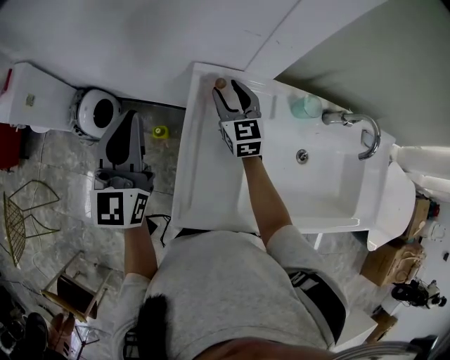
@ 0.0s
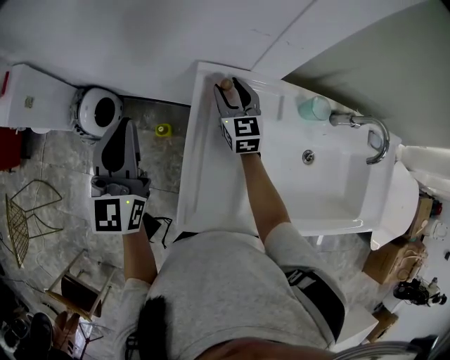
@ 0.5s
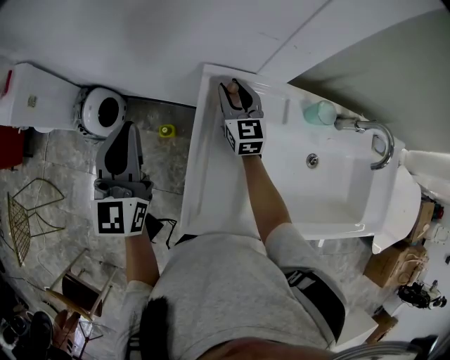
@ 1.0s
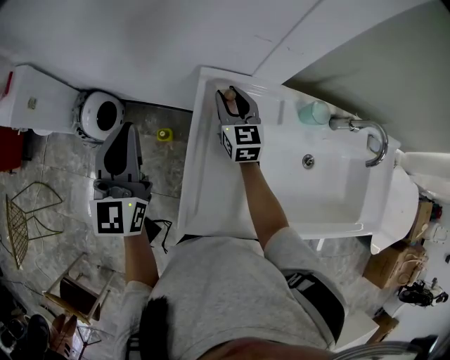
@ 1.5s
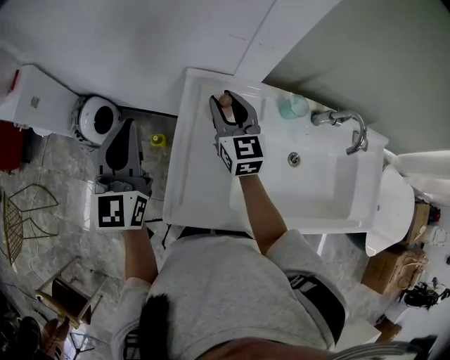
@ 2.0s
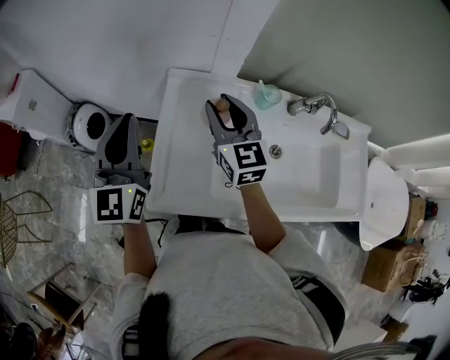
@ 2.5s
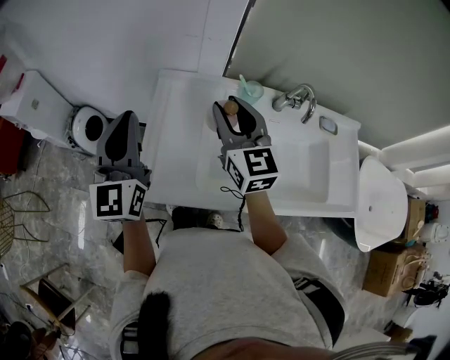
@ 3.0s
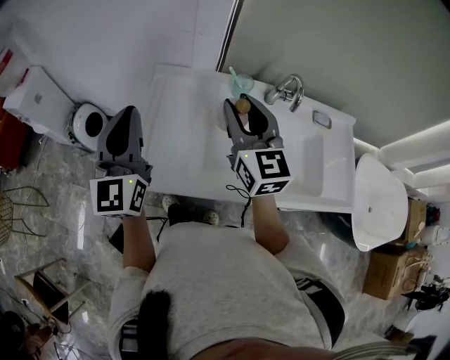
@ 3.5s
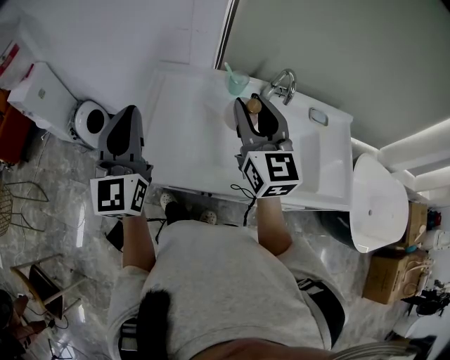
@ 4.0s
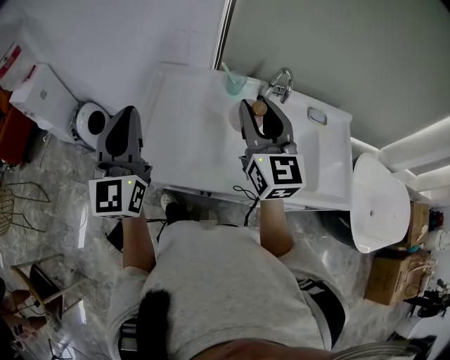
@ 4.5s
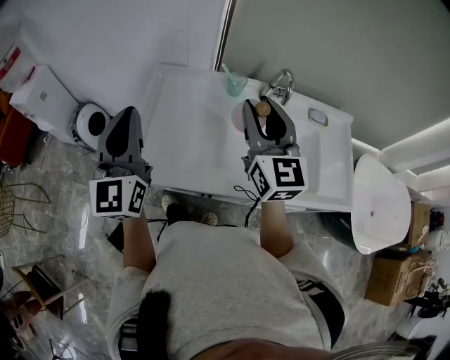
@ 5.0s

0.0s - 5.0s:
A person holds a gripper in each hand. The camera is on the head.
0.0s - 2.5s: The left gripper travels backward, to the right and upward by about 10 cm. The right gripper goes approximately 20 cm upward and backward.
2.5s - 5.0s: The left gripper is displaced backward and to the right by approximately 20 cm; the right gripper is displaced backward, to the right and upward by about 30 cm.

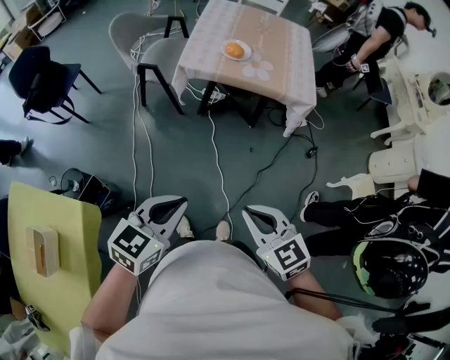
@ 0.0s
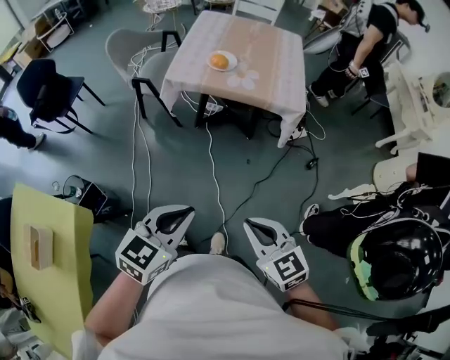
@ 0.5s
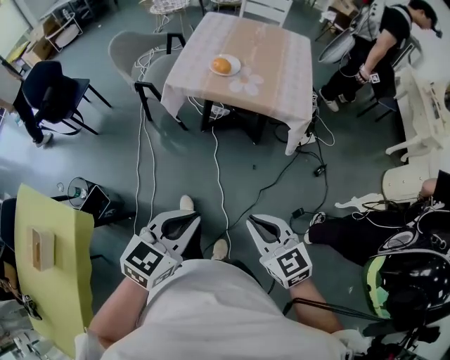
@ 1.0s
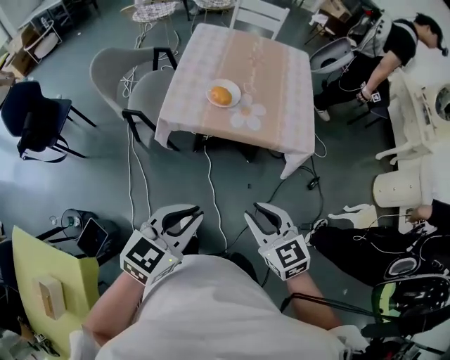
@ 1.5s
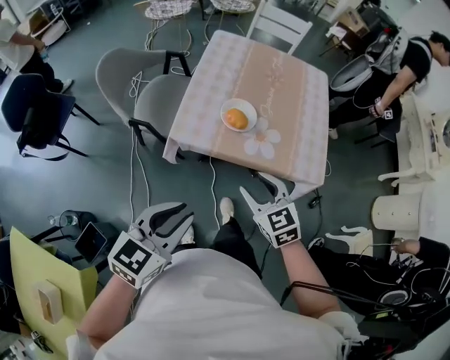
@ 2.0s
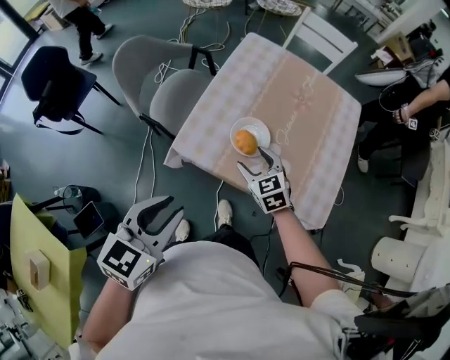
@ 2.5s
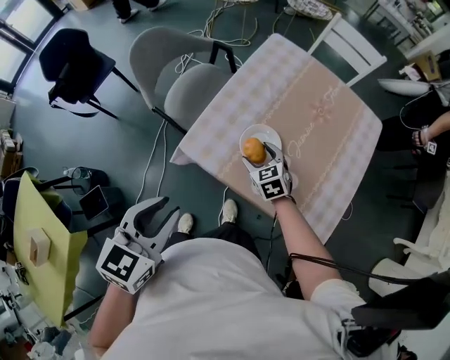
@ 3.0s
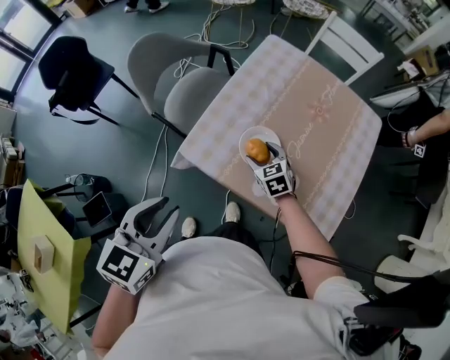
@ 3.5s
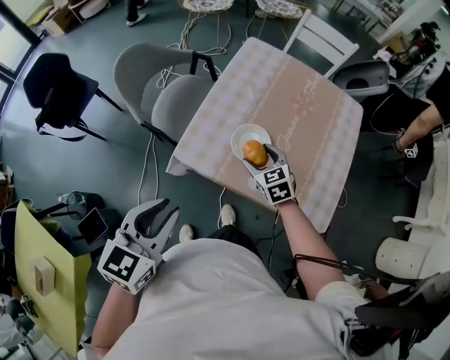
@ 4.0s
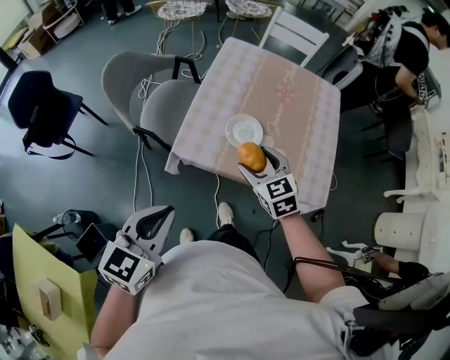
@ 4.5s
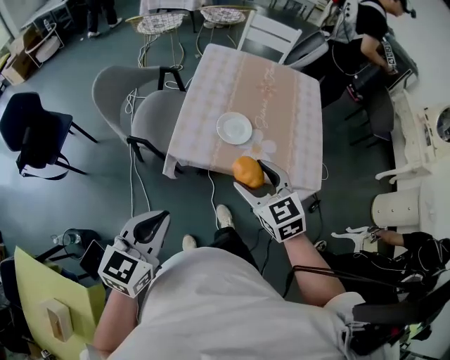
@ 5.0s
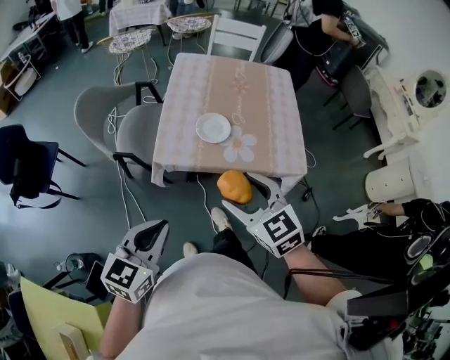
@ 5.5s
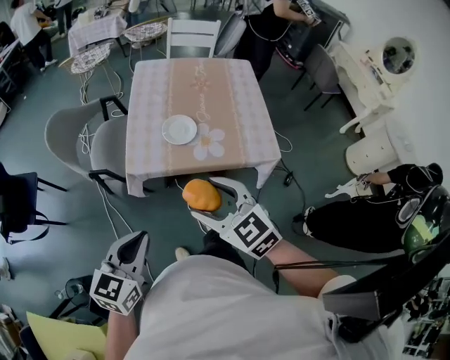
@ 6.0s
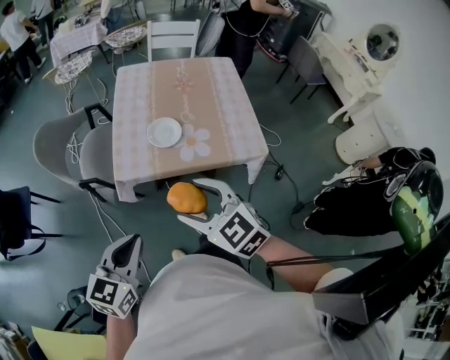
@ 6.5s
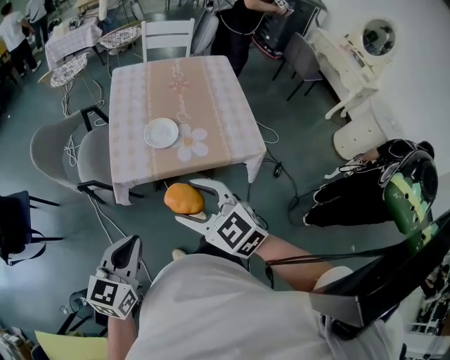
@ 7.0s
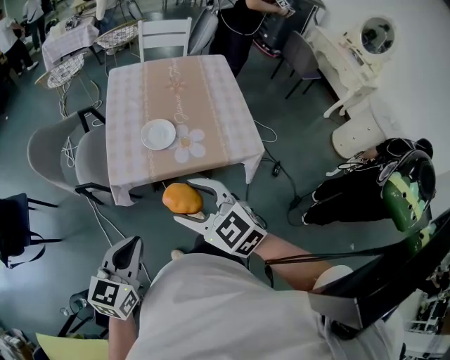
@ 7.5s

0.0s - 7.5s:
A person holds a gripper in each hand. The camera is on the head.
0.0s - 2.0s: Both grippers move forward, roughly 35 cm. The right gripper opens up.
2.0s - 4.0s: The left gripper travels forward by about 15 cm, and turns by roughly 20 degrees, while the right gripper shifts some 25 cm forward and downward, and opens its fingers.
4.0s - 5.5s: The left gripper shifts some 15 cm backward, swivels roughly 20 degrees, and closes its fingers; the right gripper goes roughly 35 cm backward and upward.
5.5s - 7.5s: The grippers move only a little.

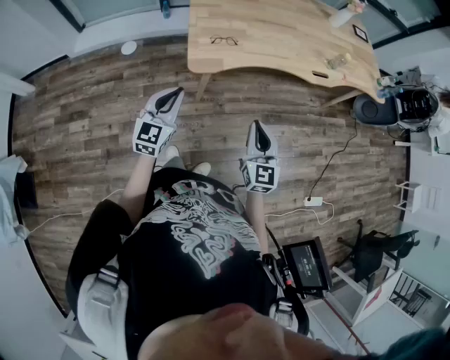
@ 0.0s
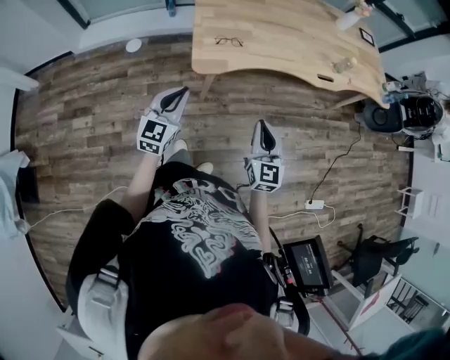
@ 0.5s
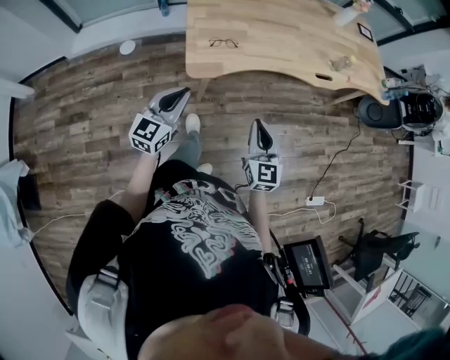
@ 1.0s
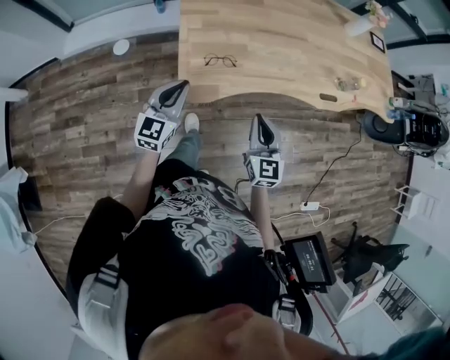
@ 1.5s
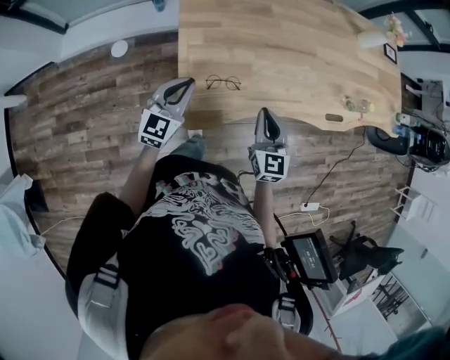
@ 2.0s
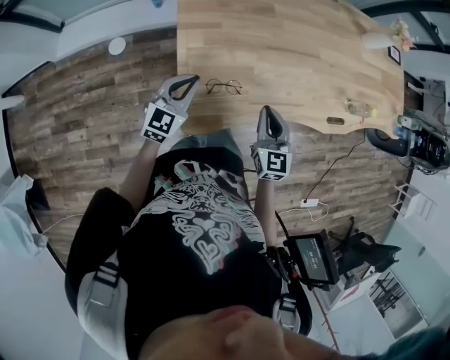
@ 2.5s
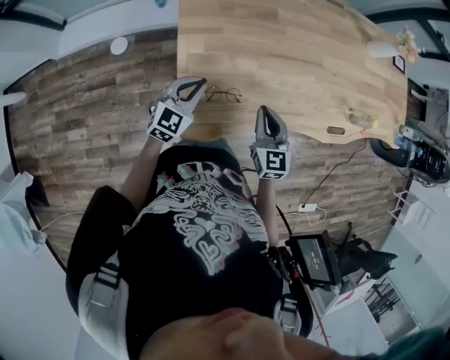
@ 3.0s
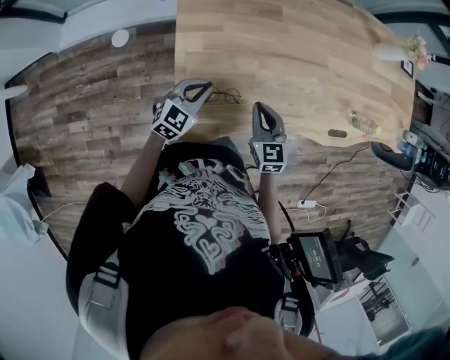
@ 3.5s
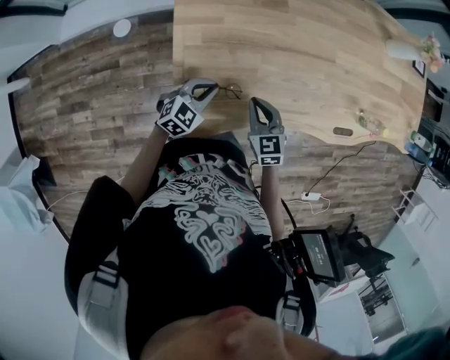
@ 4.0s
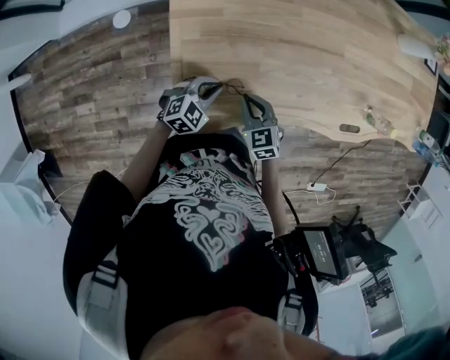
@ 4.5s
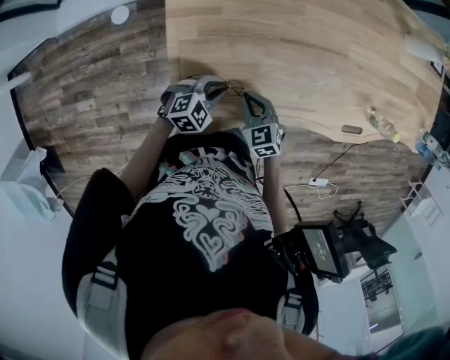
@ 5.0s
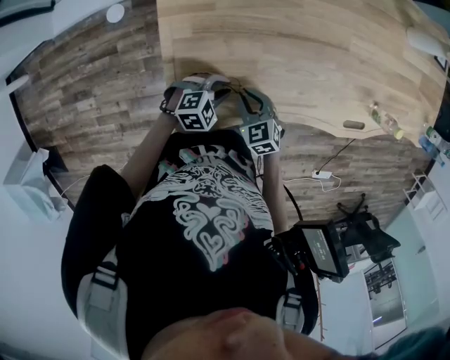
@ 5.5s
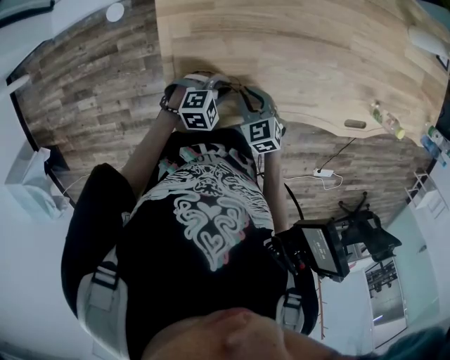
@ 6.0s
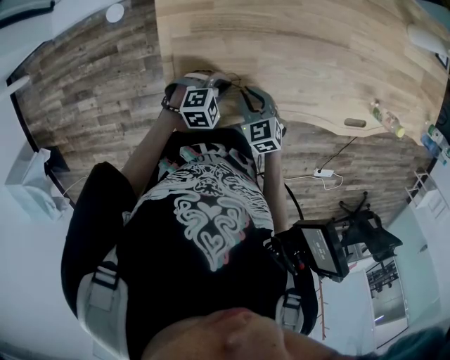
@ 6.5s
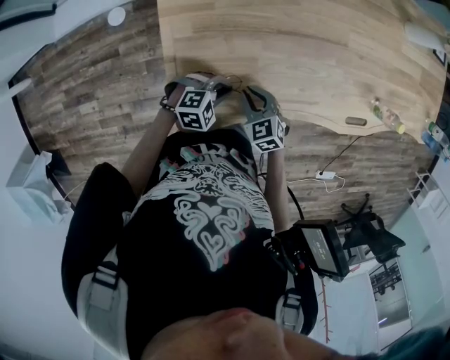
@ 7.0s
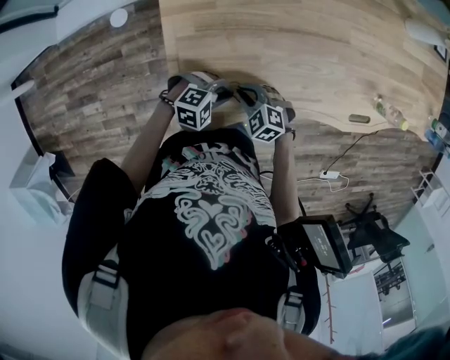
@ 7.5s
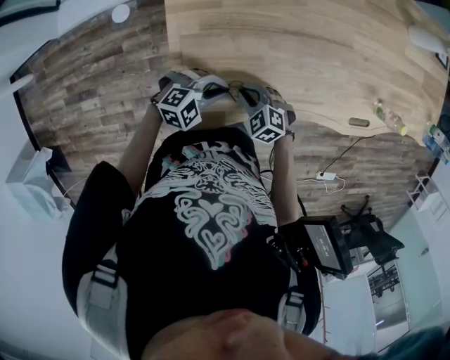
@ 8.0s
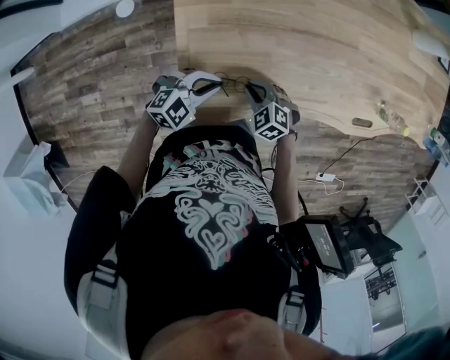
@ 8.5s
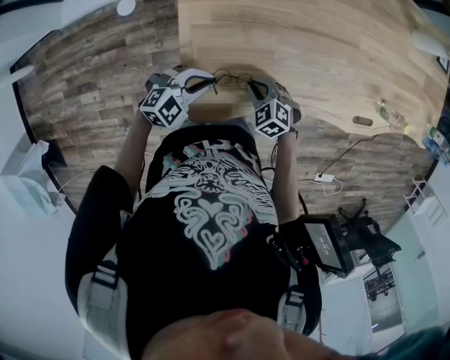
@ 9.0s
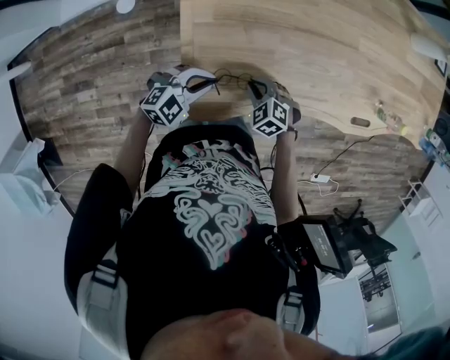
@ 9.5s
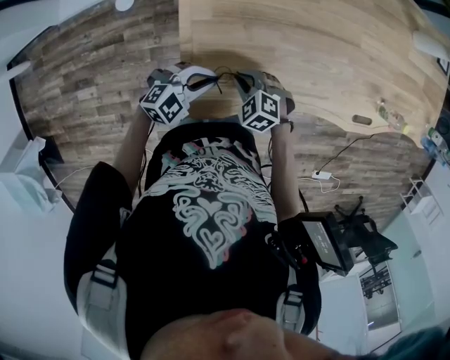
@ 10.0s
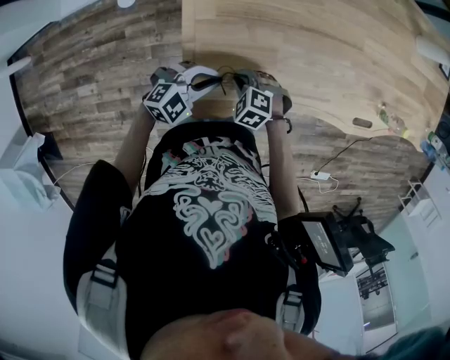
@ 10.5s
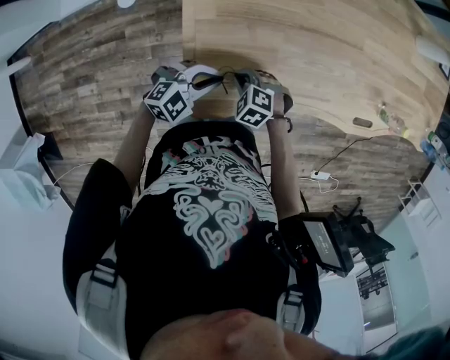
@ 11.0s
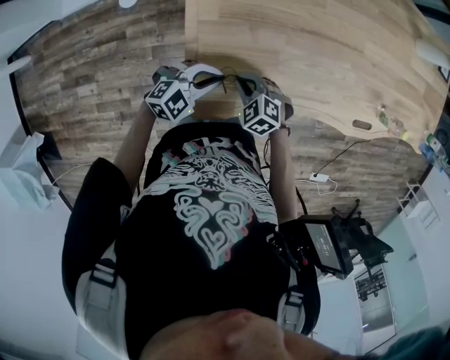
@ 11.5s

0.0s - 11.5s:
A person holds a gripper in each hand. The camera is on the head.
0.0s - 2.0s: Both grippers move forward, approximately 40 cm.
2.0s - 4.0s: The right gripper travels downward and forward by roughly 15 cm, and swivels about 30 degrees, while the left gripper moves downward, forward and to the right, about 20 cm, and rotates roughly 30 degrees.
4.0s - 6.0s: Both grippers move downward, approximately 10 cm. The left gripper turns by roughly 30 degrees.
6.0s - 7.5s: The right gripper swivels roughly 30 degrees.
7.5s - 9.5s: The left gripper ends up approximately 10 cm from where it was, and rotates some 30 degrees.
9.5s - 11.5s: The right gripper ends up approximately 5 cm from where it was.

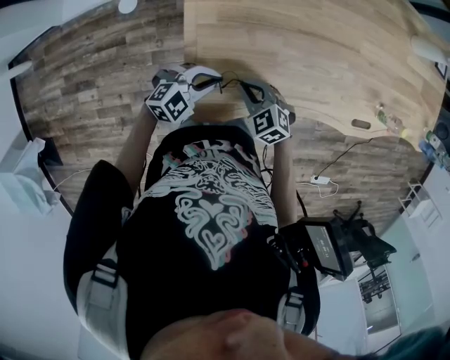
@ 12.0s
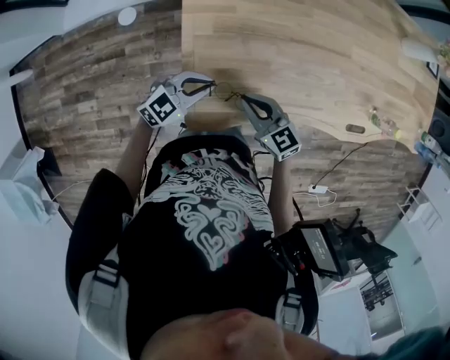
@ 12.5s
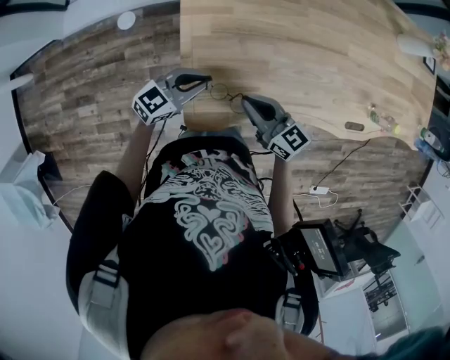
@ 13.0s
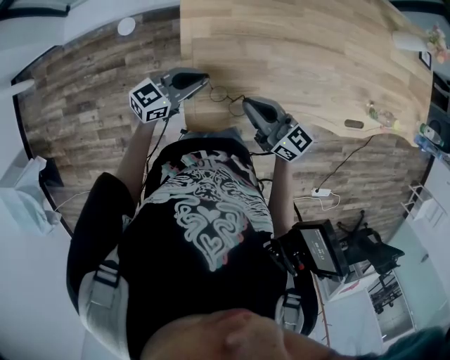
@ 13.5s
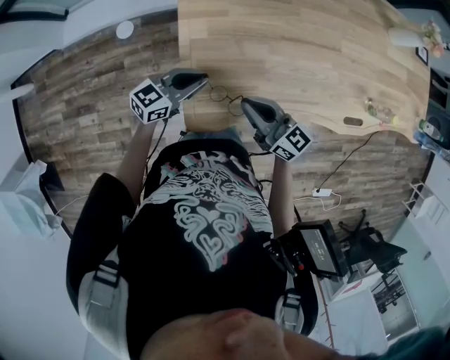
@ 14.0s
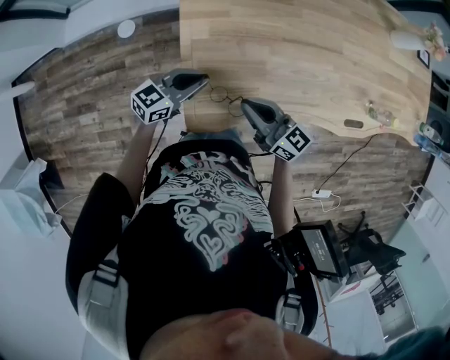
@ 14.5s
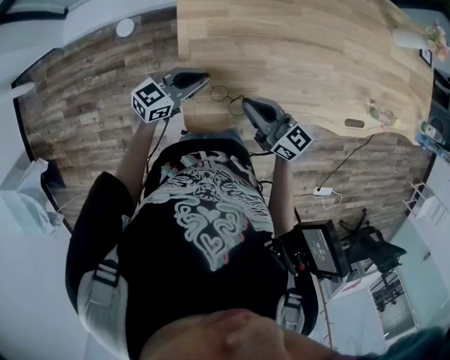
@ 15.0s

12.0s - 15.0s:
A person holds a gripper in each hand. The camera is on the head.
12.0s - 13.5s: The left gripper goes roughly 5 cm upward, and turns by some 40 degrees. The right gripper moves upward, roughly 15 cm, and angles its fingers upward, by some 50 degrees.
13.5s - 15.0s: There are only small adjustments of the grippers.
